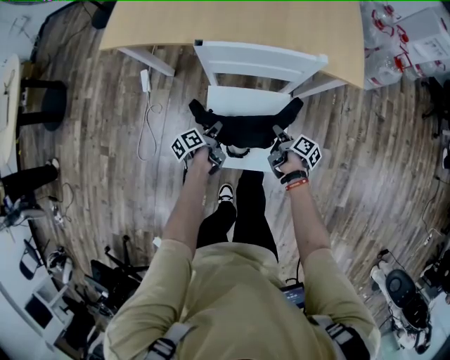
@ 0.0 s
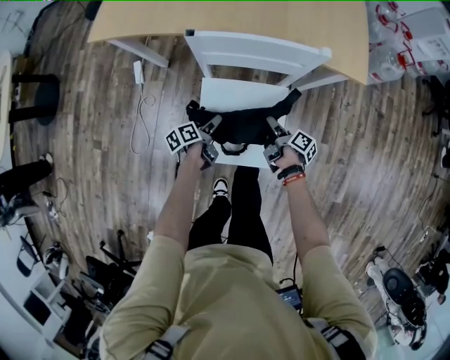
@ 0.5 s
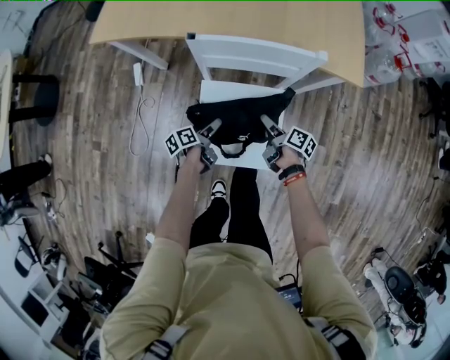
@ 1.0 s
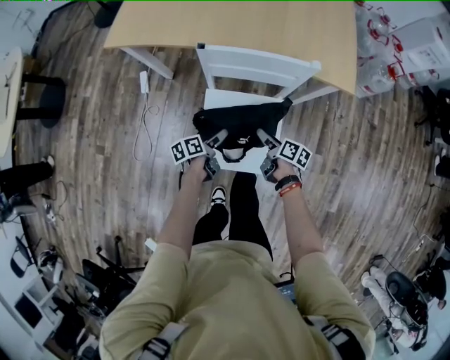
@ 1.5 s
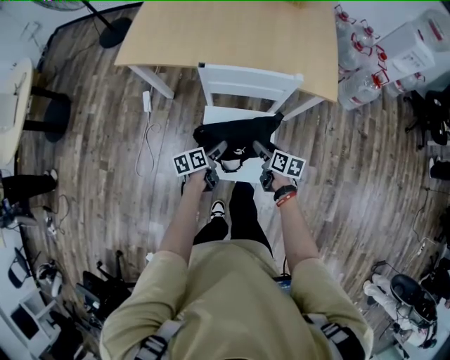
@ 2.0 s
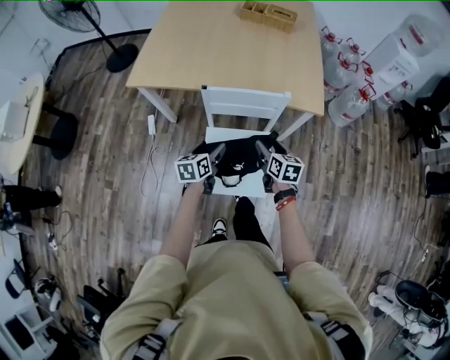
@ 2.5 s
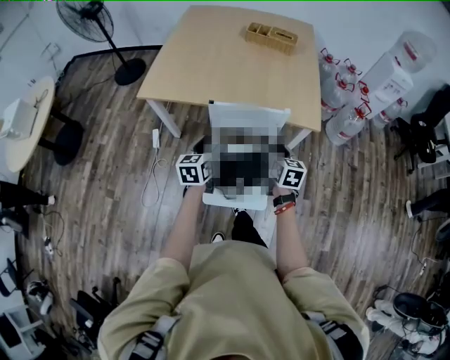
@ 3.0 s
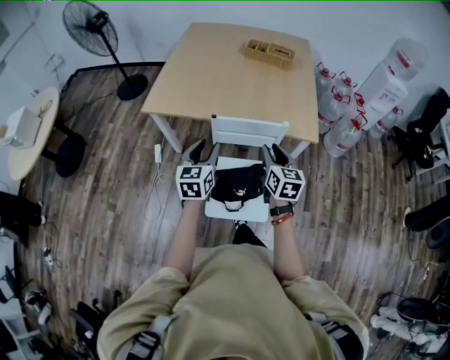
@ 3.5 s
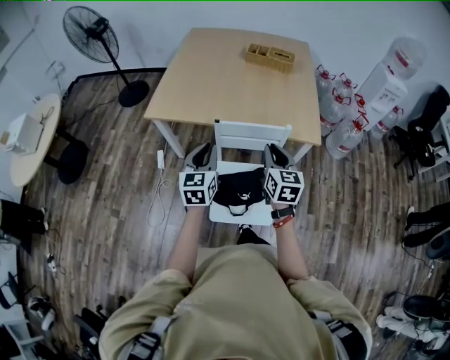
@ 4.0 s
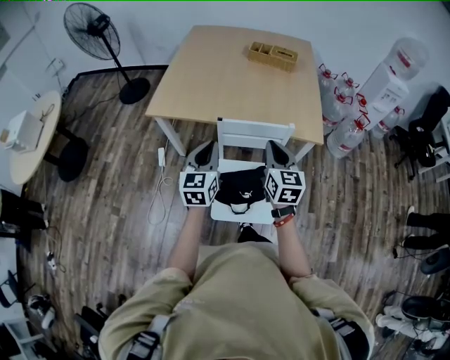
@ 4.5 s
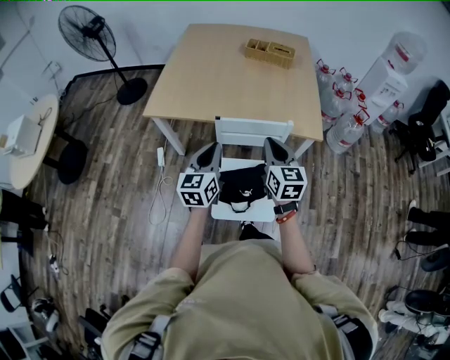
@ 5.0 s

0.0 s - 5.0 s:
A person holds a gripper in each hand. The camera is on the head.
0.0 s - 2.5 s: The two grippers go roughly 25 cm upward. The right gripper rotates around the line of its fingers by some 60 degrees, counterclockwise from behind, and opens. The left gripper twists some 50 degrees clockwise, seen from behind, and opens its fingers.
2.5 s - 5.0 s: The two grippers go roughly 20 cm upward. The right gripper turns by some 30 degrees, and closes; the left gripper changes its angle by about 30 degrees, and closes.

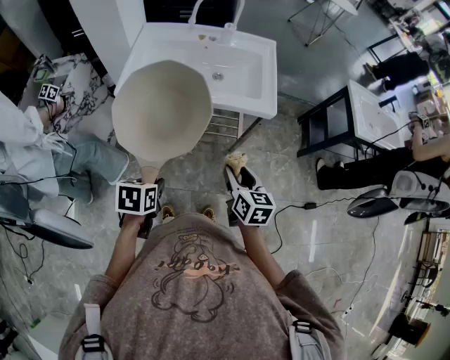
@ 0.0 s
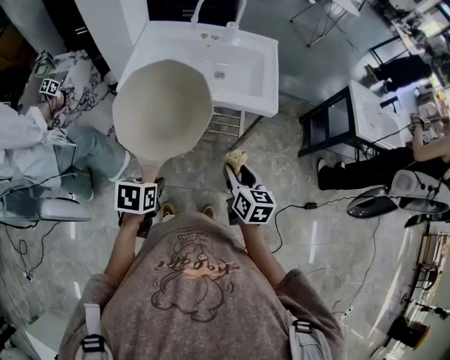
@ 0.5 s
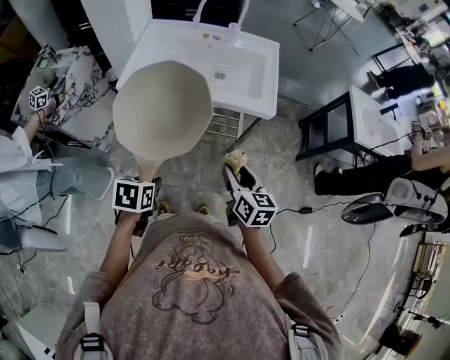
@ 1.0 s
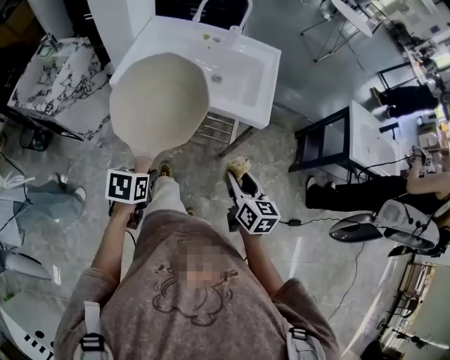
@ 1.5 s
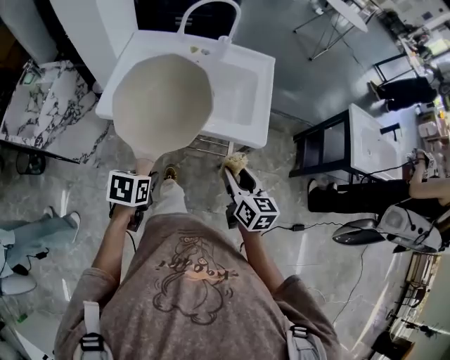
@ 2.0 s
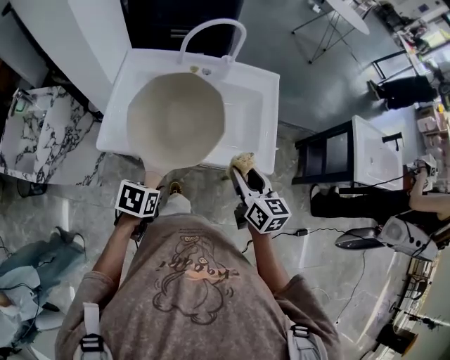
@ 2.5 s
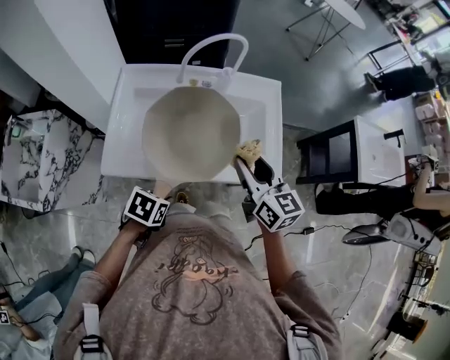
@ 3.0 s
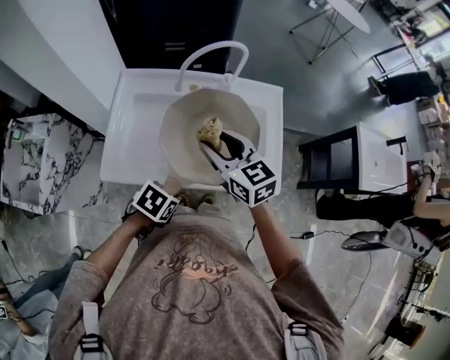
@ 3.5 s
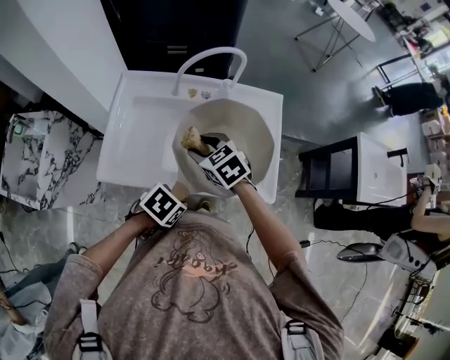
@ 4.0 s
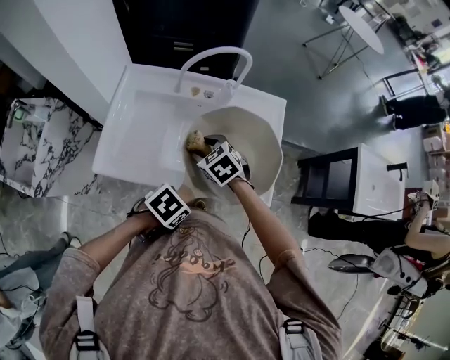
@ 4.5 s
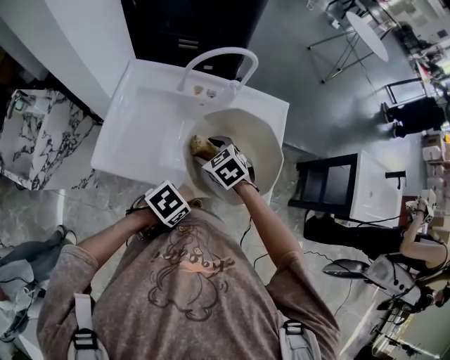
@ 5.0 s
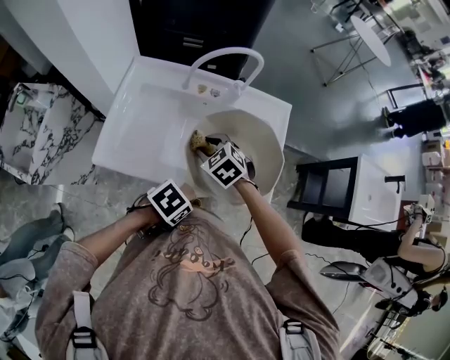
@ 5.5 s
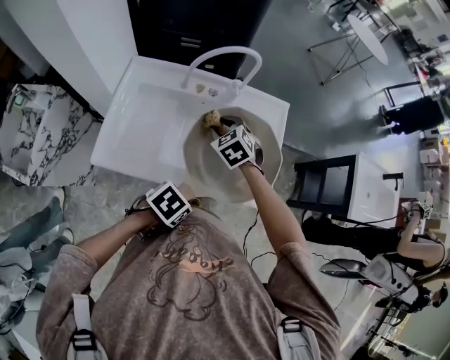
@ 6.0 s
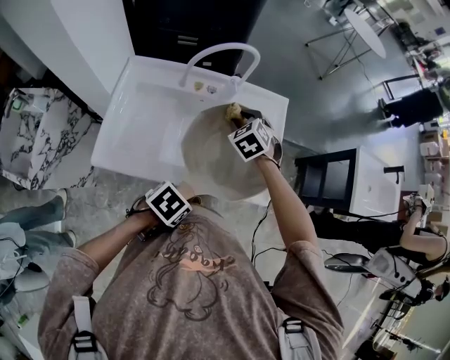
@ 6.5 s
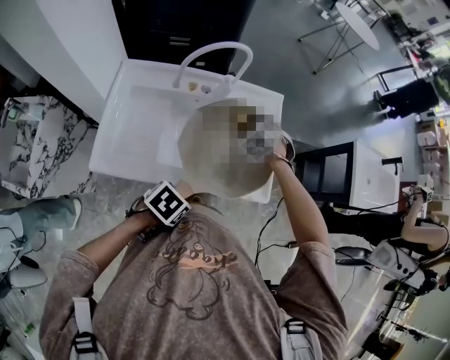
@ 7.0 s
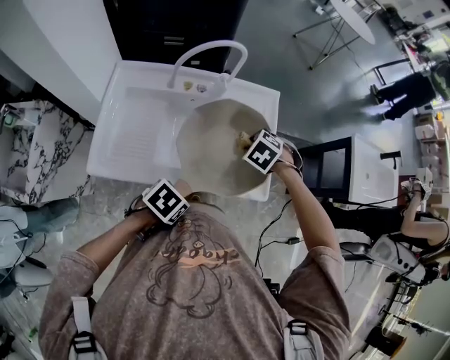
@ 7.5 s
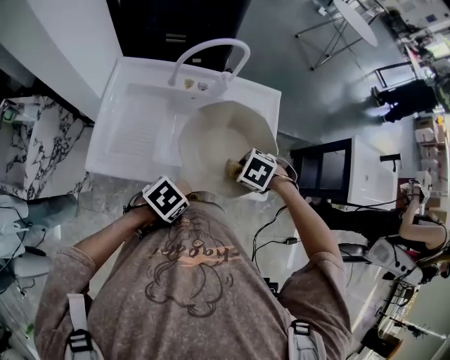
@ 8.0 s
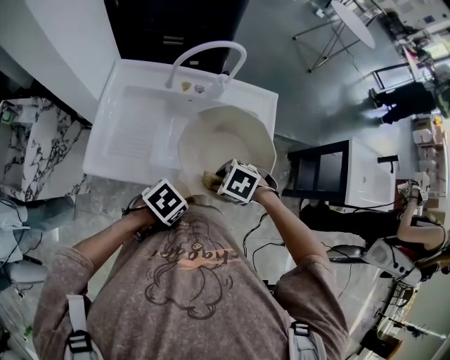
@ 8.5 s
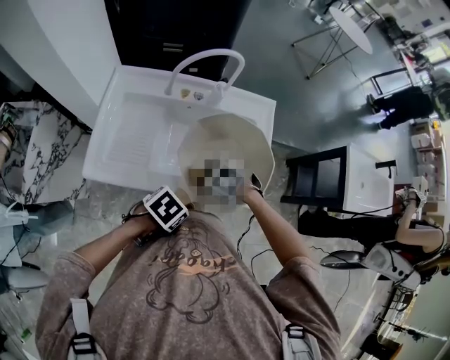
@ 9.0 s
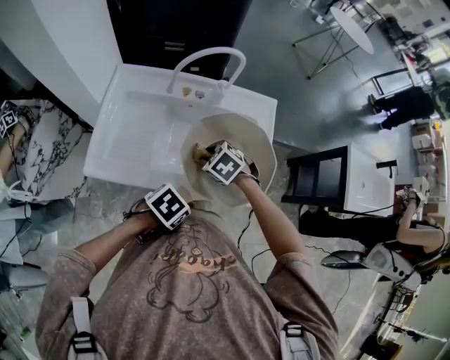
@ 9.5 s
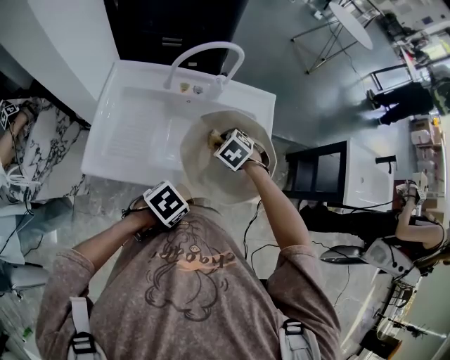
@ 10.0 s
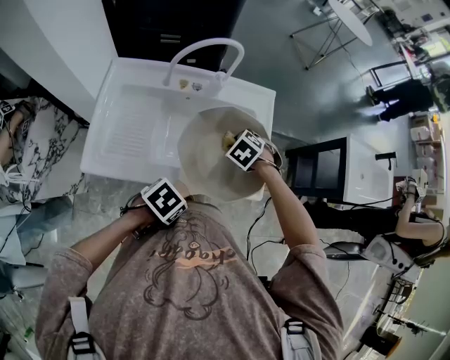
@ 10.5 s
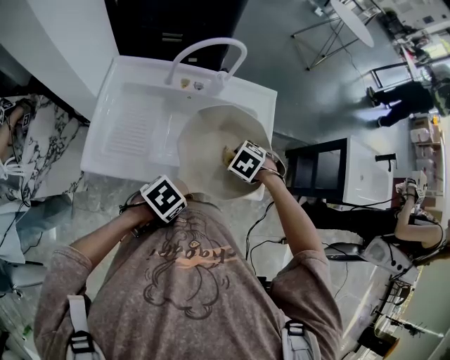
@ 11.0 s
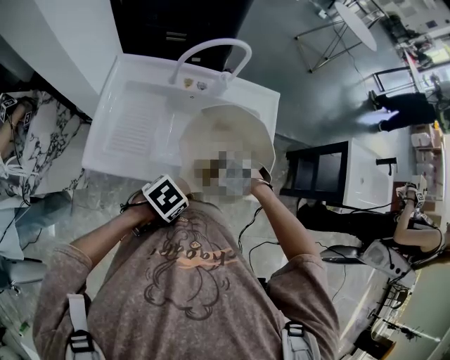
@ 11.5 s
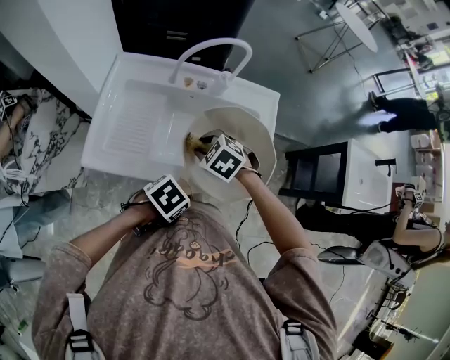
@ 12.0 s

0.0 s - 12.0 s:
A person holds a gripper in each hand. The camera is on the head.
0.0 s - 2.0 s: The right gripper shifts by about 15 cm.
2.0 s - 4.0 s: The right gripper reaches approximately 10 cm upward, then returns, and turns by roughly 50 degrees.
4.0 s - 6.0 s: The right gripper shifts by some 10 cm.
6.0 s - 8.0 s: The right gripper ends up approximately 20 cm from where it was, and points its fingers some 30 degrees further downward.
8.0 s - 10.0 s: The right gripper shifts by some 10 cm.
10.0 s - 12.0 s: The right gripper changes place by some 10 cm.

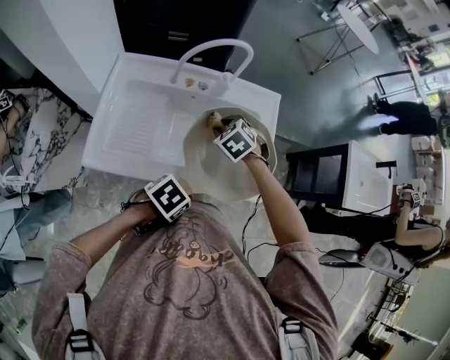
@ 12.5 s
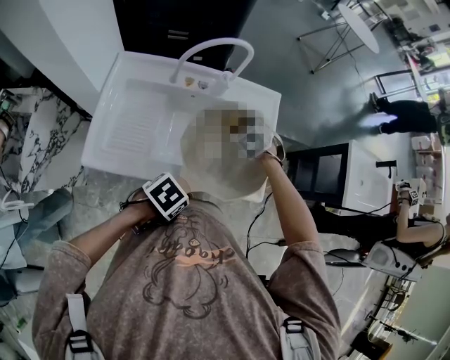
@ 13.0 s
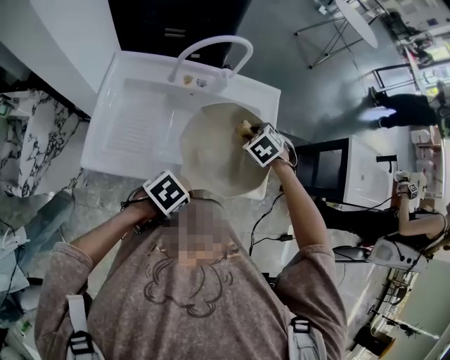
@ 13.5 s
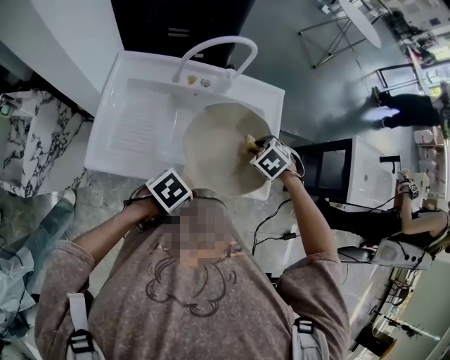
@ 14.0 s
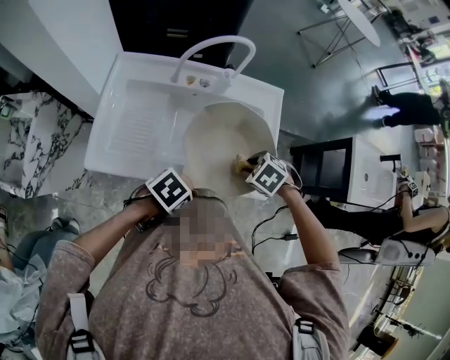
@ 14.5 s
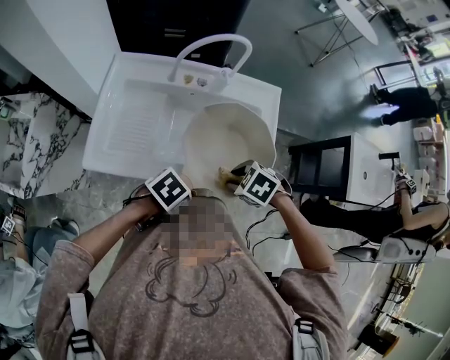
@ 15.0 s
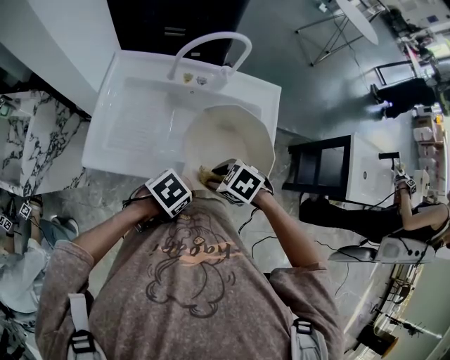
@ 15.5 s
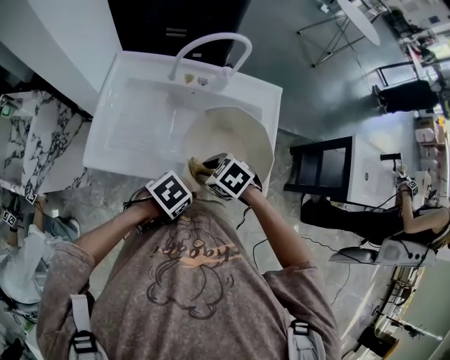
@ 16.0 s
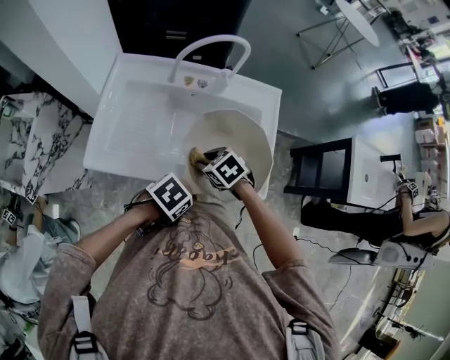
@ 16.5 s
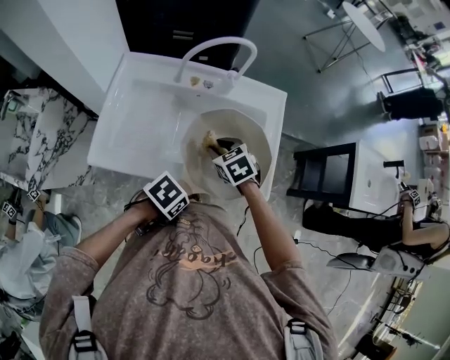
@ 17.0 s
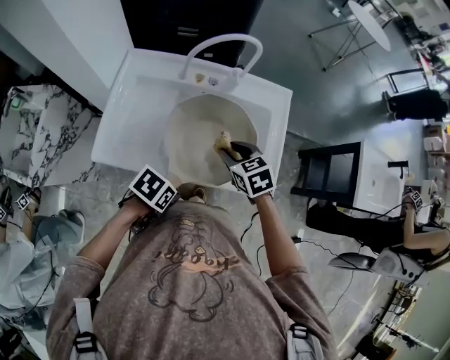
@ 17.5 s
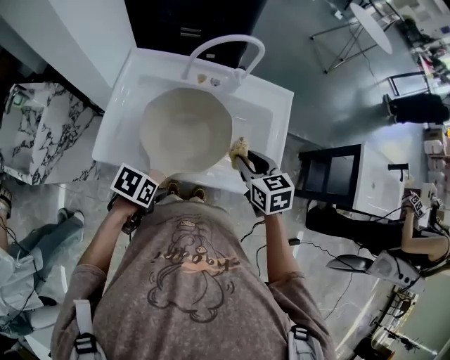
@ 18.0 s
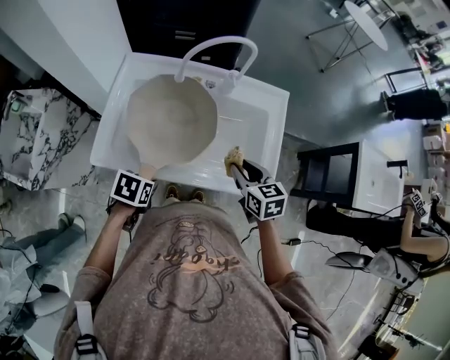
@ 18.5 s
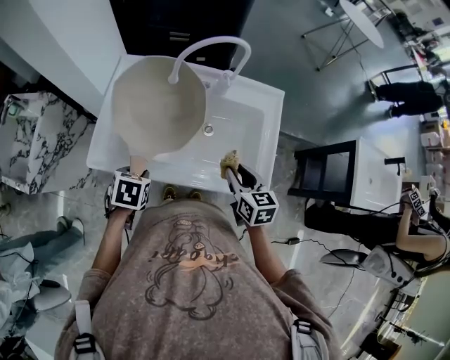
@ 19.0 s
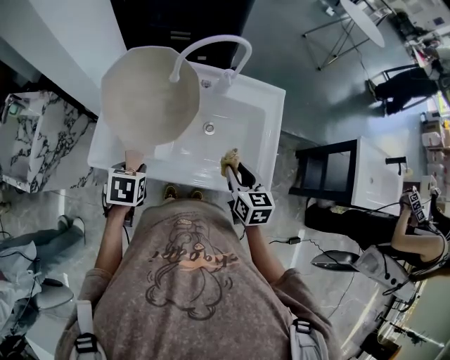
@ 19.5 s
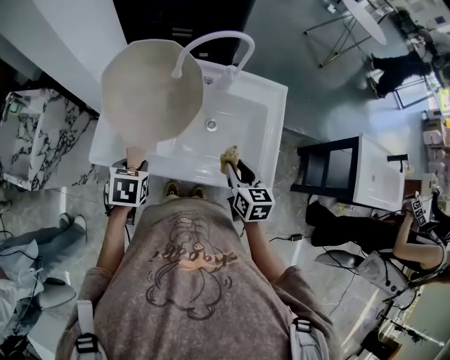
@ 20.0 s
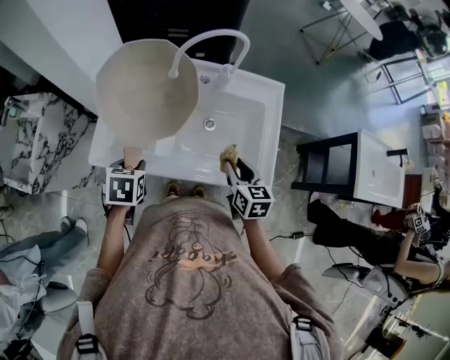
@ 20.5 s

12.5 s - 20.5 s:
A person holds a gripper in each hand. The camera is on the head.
12.5 s - 14.5 s: The right gripper changes place by roughly 15 cm, and turns by approximately 20 degrees.
14.5 s - 16.5 s: The right gripper ends up about 15 cm from where it was, and swivels approximately 20 degrees.
16.5 s - 18.5 s: The right gripper changes place by some 10 cm, and turns by roughly 40 degrees.

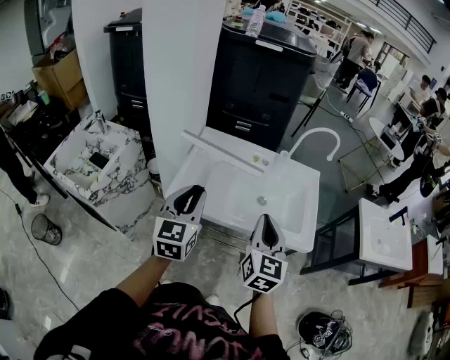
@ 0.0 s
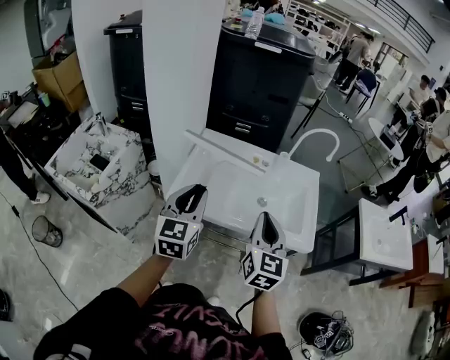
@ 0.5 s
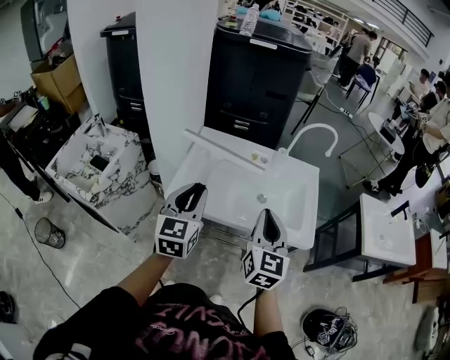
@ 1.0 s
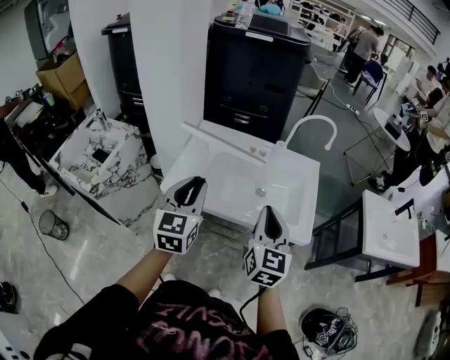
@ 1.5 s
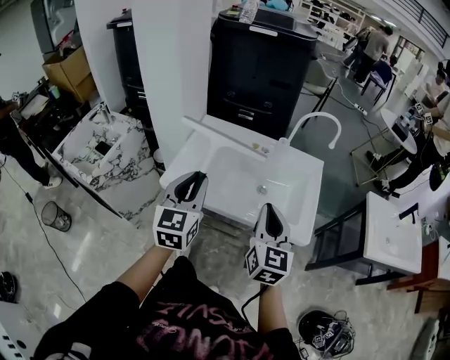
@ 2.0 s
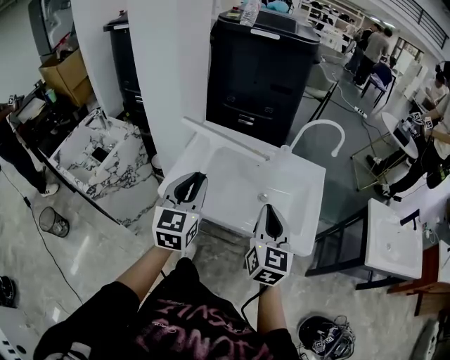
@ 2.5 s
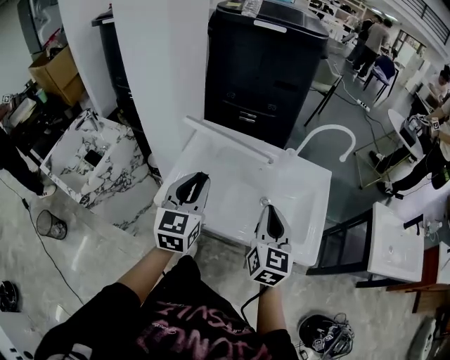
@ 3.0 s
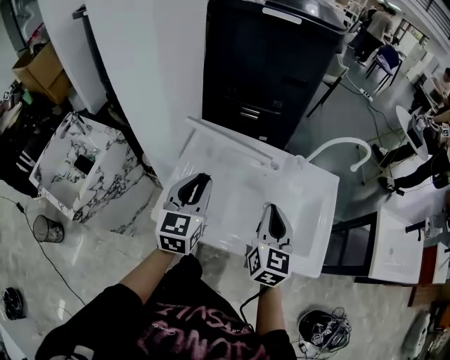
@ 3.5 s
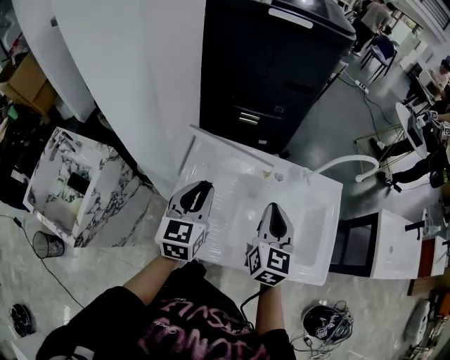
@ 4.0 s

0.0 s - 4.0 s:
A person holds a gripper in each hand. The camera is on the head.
0.0 s - 2.0 s: The grippers both shift to the right by about 5 cm.
2.0 s - 4.0 s: Both grippers move forward, roughly 25 cm.
